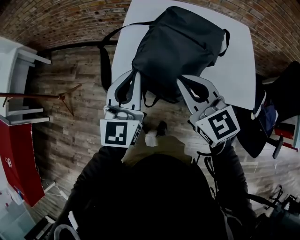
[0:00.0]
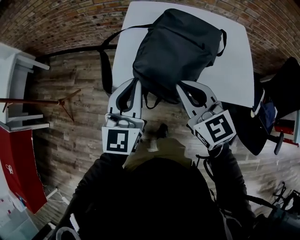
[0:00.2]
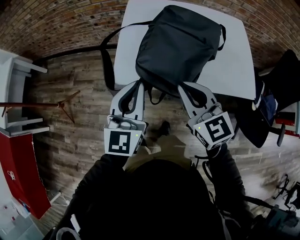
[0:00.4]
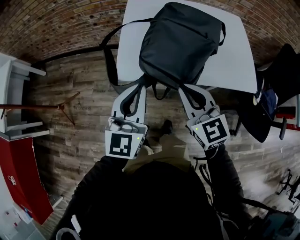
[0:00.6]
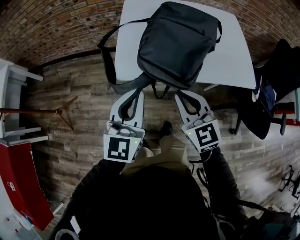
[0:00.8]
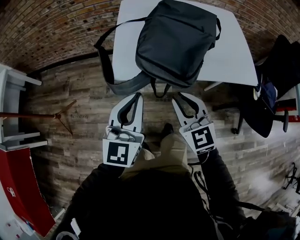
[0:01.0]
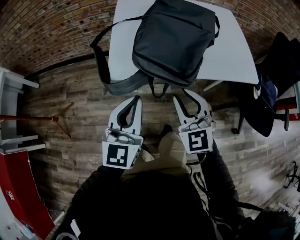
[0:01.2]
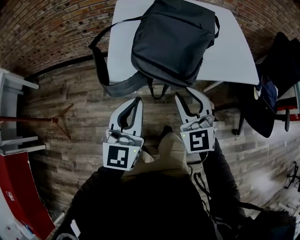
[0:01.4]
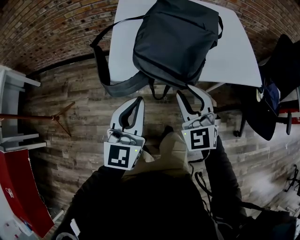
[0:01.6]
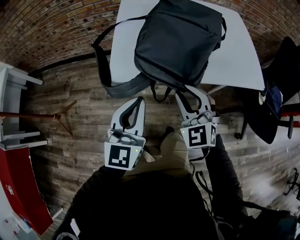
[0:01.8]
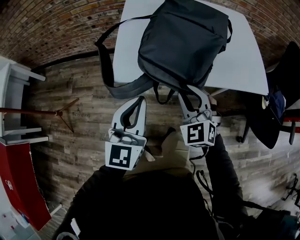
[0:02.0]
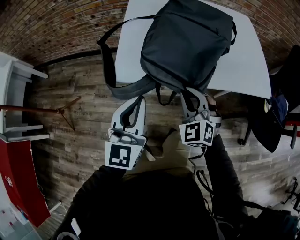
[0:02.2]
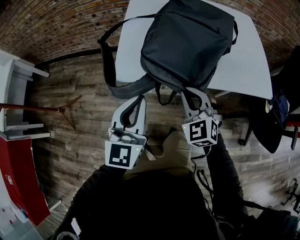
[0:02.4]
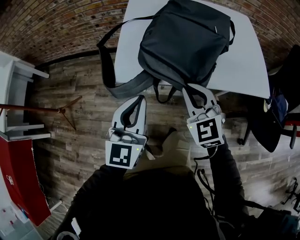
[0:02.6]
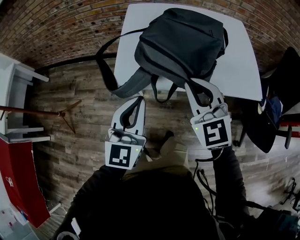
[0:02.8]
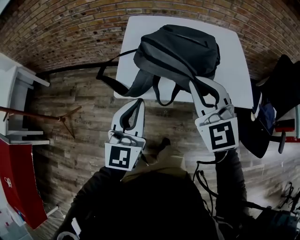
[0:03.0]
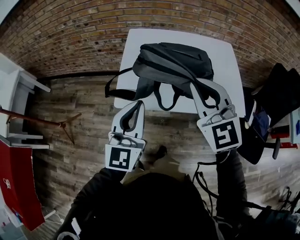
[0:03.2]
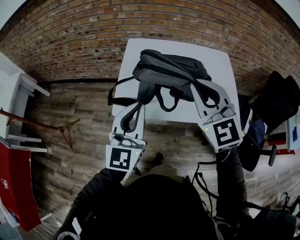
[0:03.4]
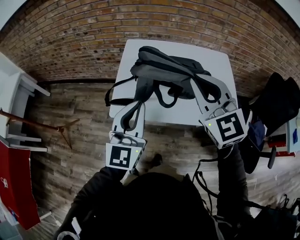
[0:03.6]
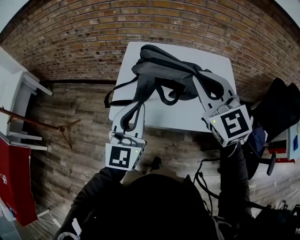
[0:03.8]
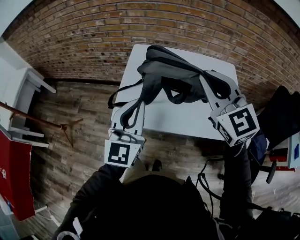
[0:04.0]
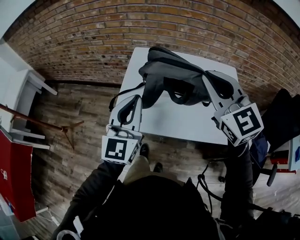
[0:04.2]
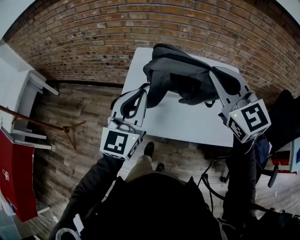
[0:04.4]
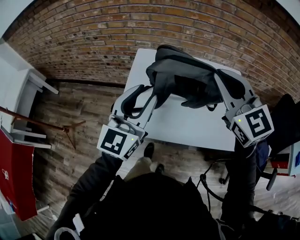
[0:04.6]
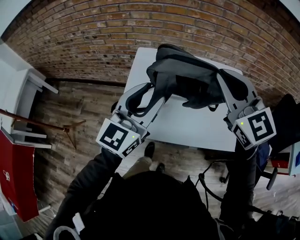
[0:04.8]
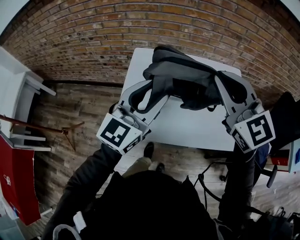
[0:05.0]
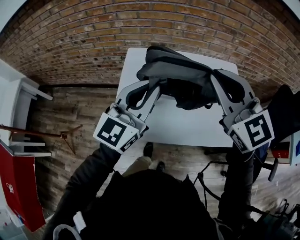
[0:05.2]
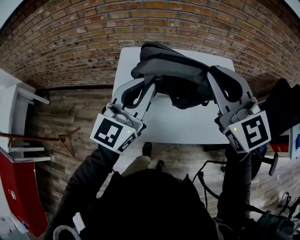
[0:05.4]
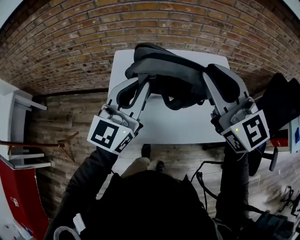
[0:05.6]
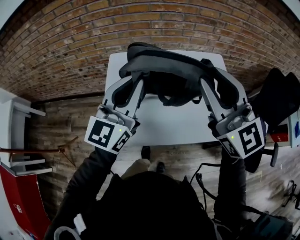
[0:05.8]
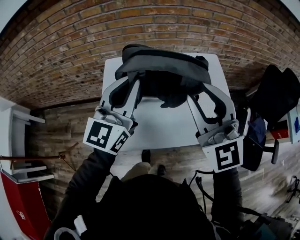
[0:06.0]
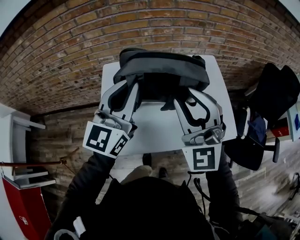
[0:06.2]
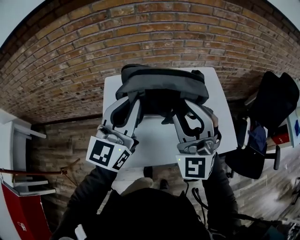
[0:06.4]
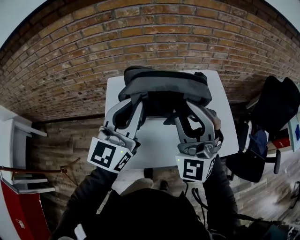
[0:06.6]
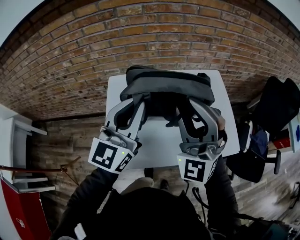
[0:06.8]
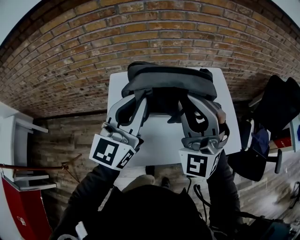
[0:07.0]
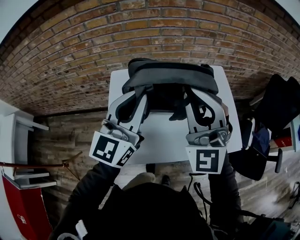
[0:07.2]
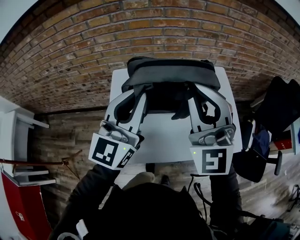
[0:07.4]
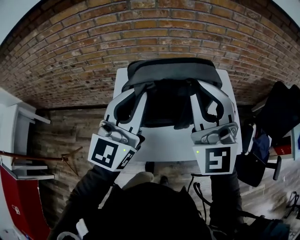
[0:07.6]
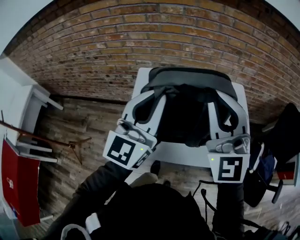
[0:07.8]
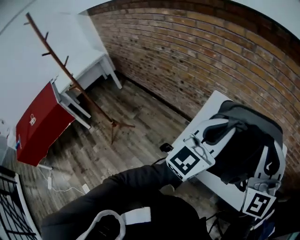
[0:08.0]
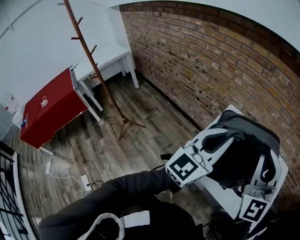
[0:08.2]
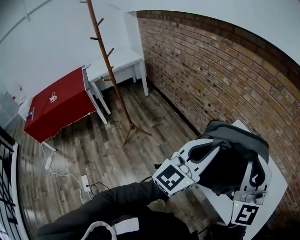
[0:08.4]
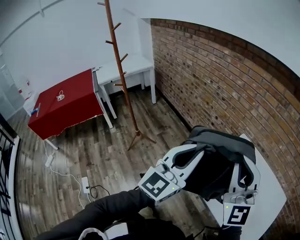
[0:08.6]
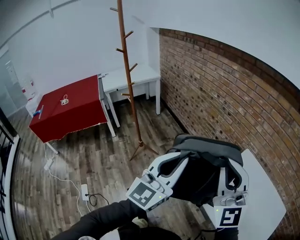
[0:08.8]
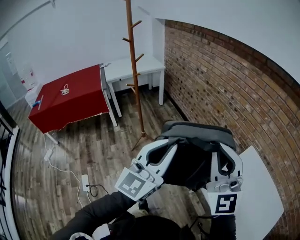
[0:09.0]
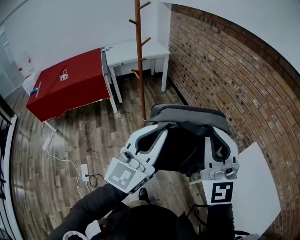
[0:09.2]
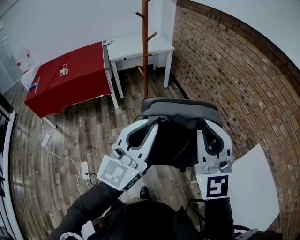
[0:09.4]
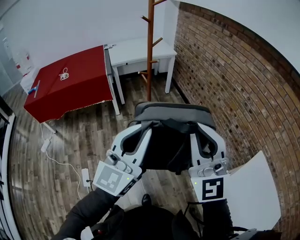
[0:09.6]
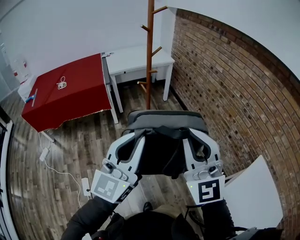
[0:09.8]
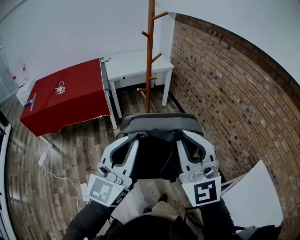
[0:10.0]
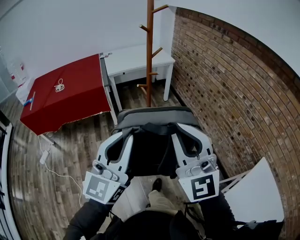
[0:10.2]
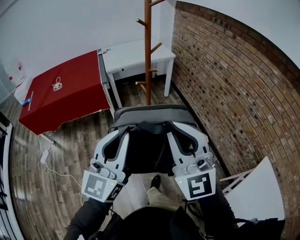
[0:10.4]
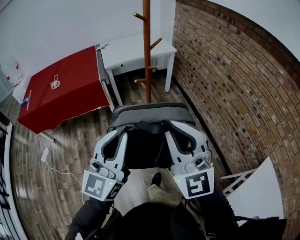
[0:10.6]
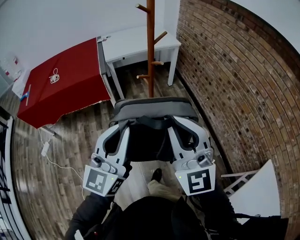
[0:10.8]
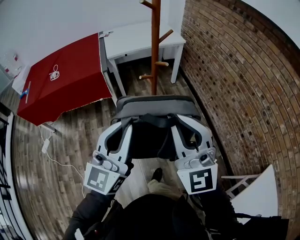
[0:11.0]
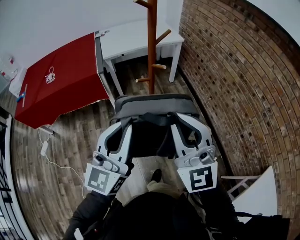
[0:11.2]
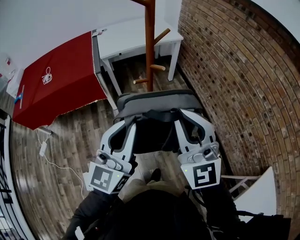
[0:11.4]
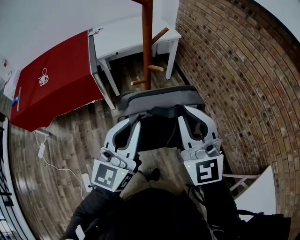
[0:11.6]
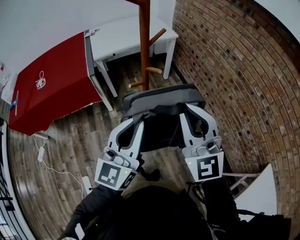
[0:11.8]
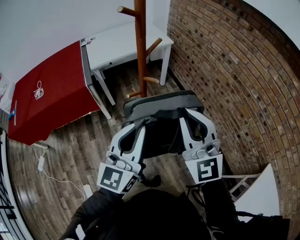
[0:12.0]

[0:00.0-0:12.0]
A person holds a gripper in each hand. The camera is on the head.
0:00.0 to 0:01.6: Both grippers move downward and backward, some 15 cm. The right gripper rotates approximately 40 degrees, and opens its fingers.
0:01.6 to 0:03.0: The right gripper goes roughly 20 cm upward, and closes. Meanwhile the left gripper is displaced upward by roughly 10 cm.
0:03.0 to 0:04.4: The right gripper goes approximately 20 cm upward, forward and to the right, while the left gripper is displaced forward, upward and to the right by about 20 cm.
0:04.4 to 0:06.0: The left gripper goes about 10 cm forward and to the right, and opens and closes again. The right gripper turns by roughly 20 degrees, and opens.
0:06.0 to 0:07.6: The right gripper changes place by roughly 5 cm, and closes its fingers.
0:07.6 to 0:09.0: The two grippers travel together, approximately 50 cm. The right gripper rotates approximately 60 degrees, while the left gripper rotates some 50 degrees.
0:09.0 to 0:10.4: The two grippers go approximately 35 cm to the left and forward.
0:10.4 to 0:12.0: Both grippers travel together forward, about 25 cm.

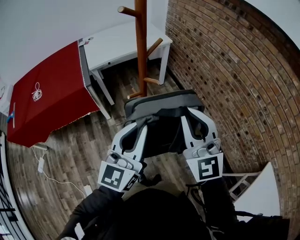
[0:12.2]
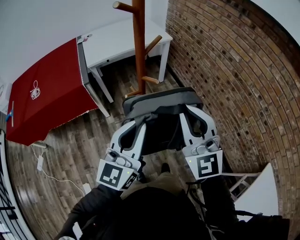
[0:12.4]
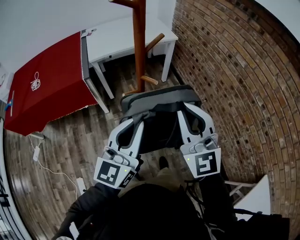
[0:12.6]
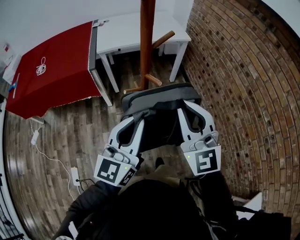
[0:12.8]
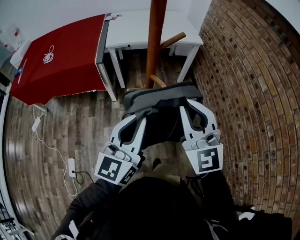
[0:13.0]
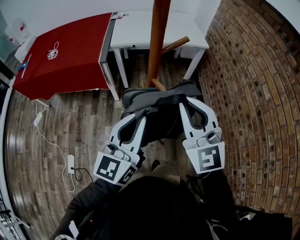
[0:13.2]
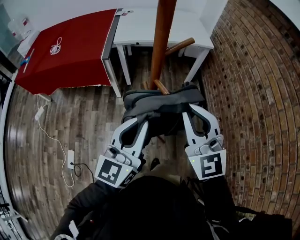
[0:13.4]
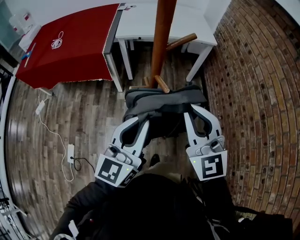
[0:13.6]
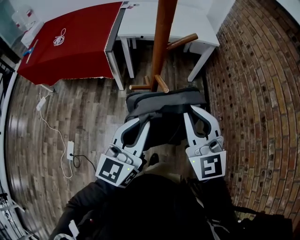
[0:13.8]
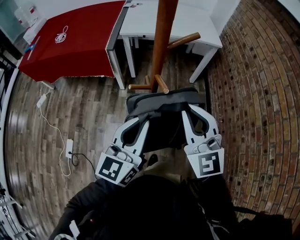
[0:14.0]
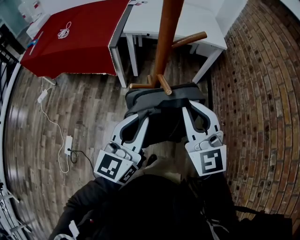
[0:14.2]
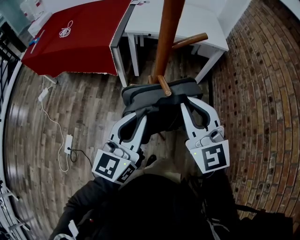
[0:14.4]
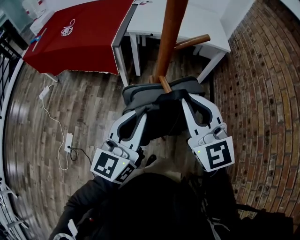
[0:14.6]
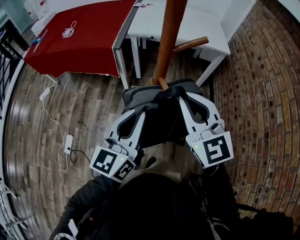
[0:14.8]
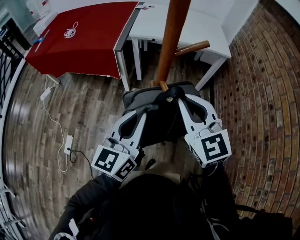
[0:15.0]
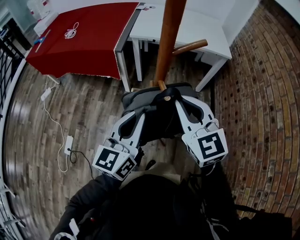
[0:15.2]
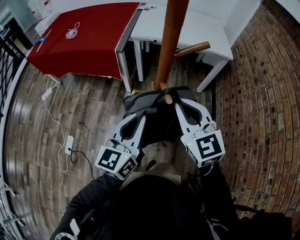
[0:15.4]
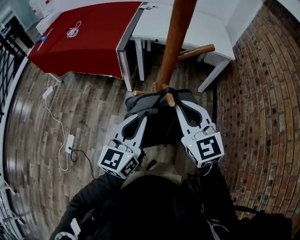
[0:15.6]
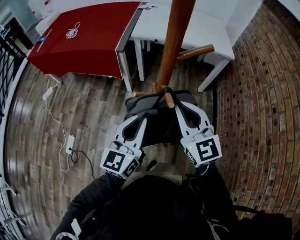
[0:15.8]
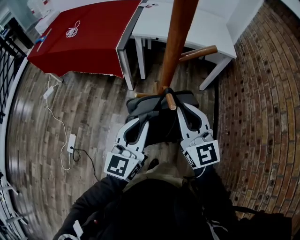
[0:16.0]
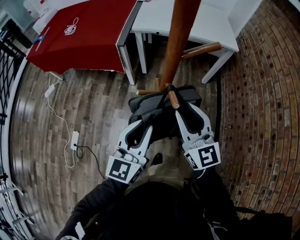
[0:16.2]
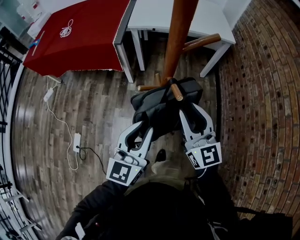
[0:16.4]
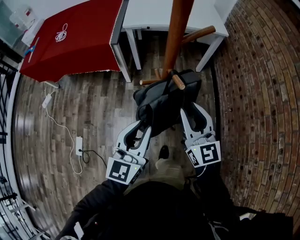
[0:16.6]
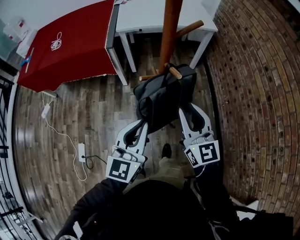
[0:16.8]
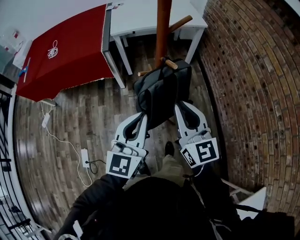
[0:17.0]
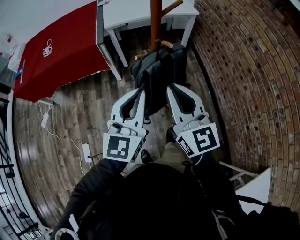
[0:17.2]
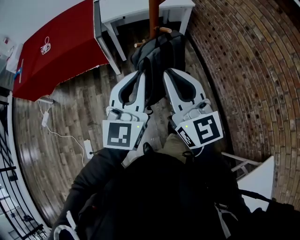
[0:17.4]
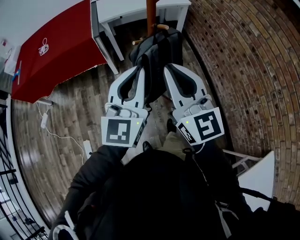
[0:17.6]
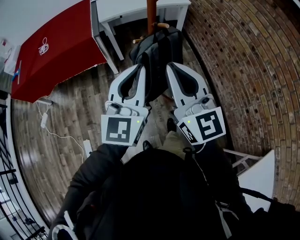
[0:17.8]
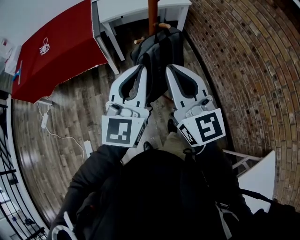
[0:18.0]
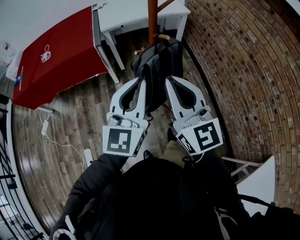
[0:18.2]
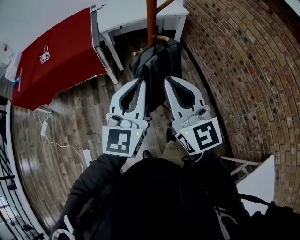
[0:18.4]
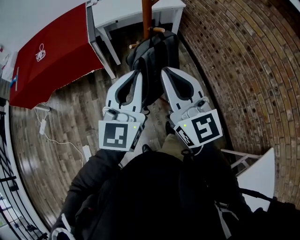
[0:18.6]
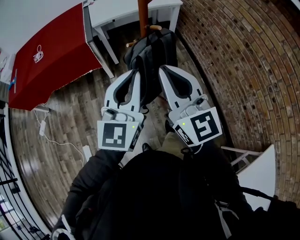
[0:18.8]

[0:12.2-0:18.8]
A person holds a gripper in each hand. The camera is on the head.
0:12.2 to 0:13.8: The left gripper moves some 15 cm, and swivels roughly 30 degrees. Meanwhile the right gripper shifts by some 15 cm, and changes its angle by roughly 30 degrees.
0:13.8 to 0:15.4: The grippers both shift forward and downward by roughly 10 cm.
0:15.4 to 0:17.2: The left gripper is displaced backward, upward and to the left by roughly 15 cm, and rotates about 20 degrees, while the right gripper goes approximately 20 cm backward and to the left, turns by about 30 degrees, and opens and closes again.
0:17.2 to 0:18.8: The right gripper ends up roughly 5 cm from where it was.

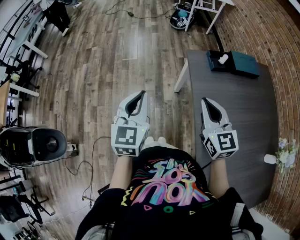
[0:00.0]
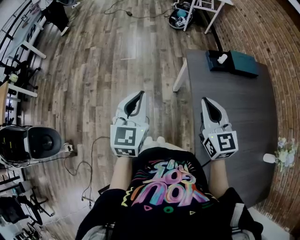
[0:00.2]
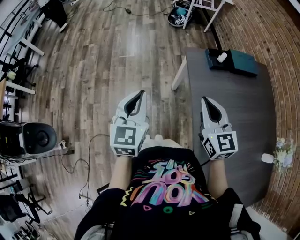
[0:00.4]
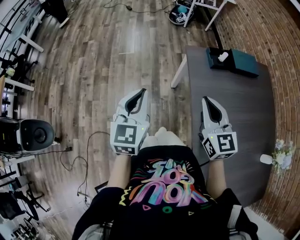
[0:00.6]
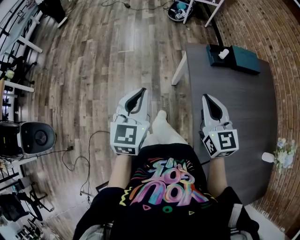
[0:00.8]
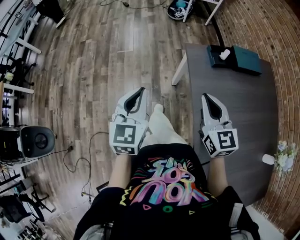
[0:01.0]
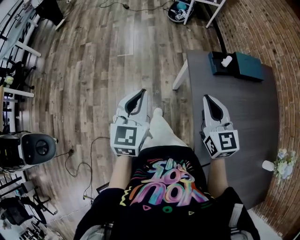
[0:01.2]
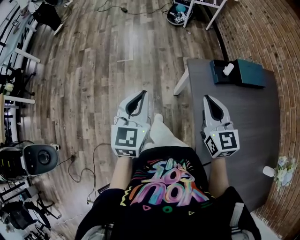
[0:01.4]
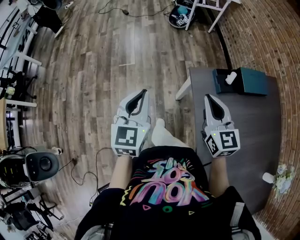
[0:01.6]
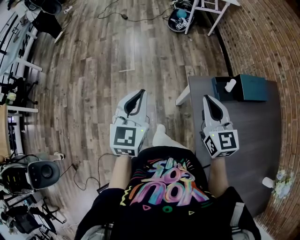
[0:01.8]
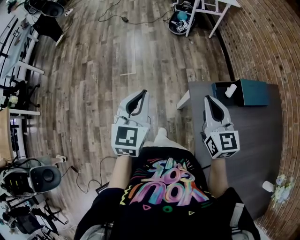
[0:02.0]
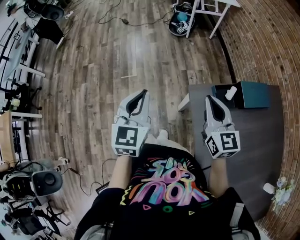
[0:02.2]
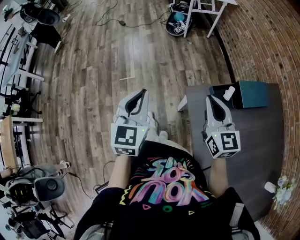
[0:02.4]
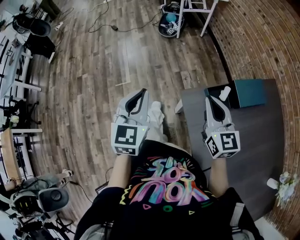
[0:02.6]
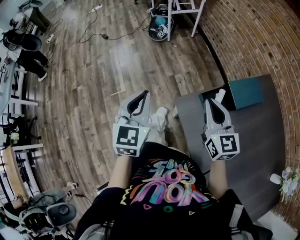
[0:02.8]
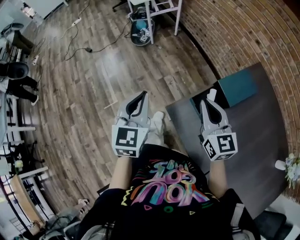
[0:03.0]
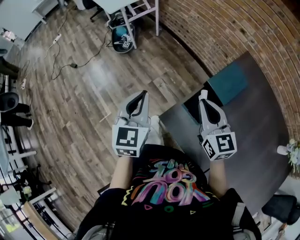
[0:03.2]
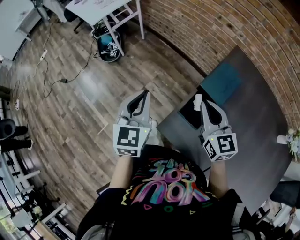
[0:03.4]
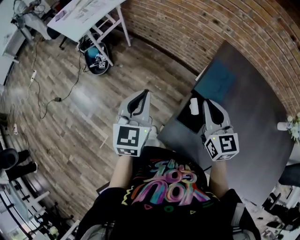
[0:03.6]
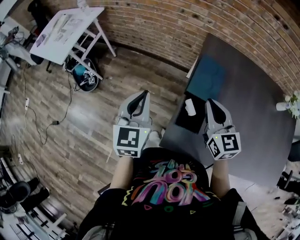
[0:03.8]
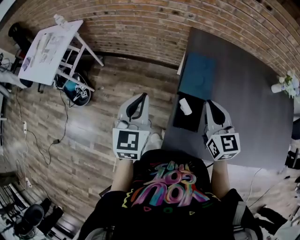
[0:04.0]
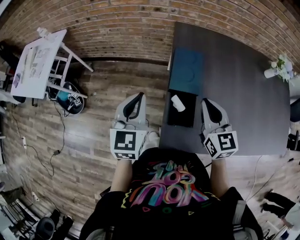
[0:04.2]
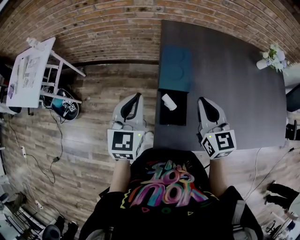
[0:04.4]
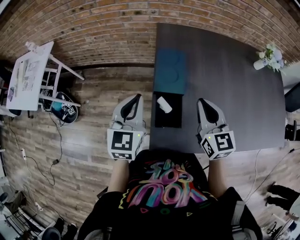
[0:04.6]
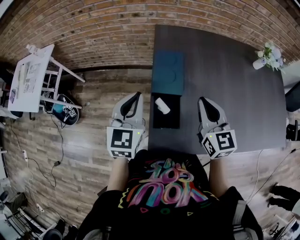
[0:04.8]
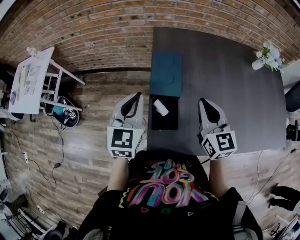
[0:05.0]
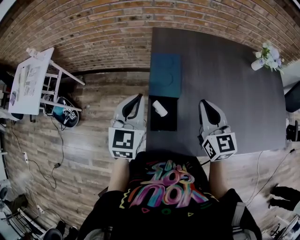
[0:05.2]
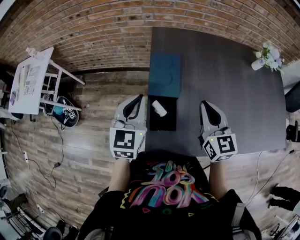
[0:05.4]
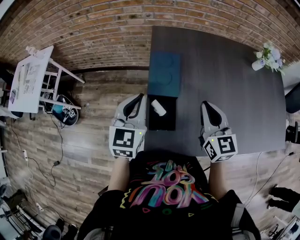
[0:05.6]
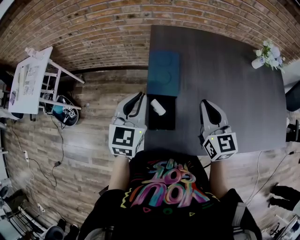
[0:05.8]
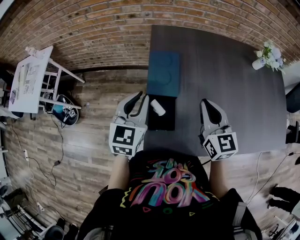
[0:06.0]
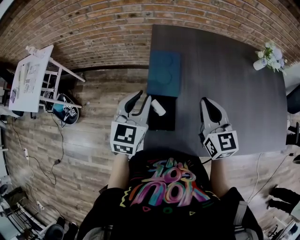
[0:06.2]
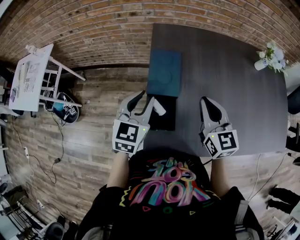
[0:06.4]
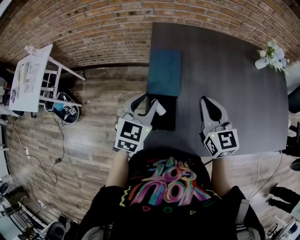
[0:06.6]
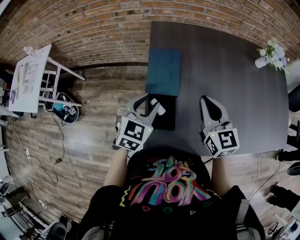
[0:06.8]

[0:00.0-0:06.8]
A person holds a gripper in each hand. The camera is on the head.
0:00.0 to 0:01.4: Both grippers move forward, approximately 15 cm.
0:01.4 to 0:02.8: The left gripper shifts some 25 cm forward. The right gripper goes about 20 cm forward and to the right.
0:02.8 to 0:04.0: The left gripper moves roughly 35 cm, and turns by about 60 degrees. The right gripper shifts by roughly 20 cm, and swivels about 60 degrees.
0:04.0 to 0:05.4: Both grippers move to the right, some 10 cm.
0:05.4 to 0:06.8: The left gripper travels downward and to the right by about 10 cm, and opens up.
